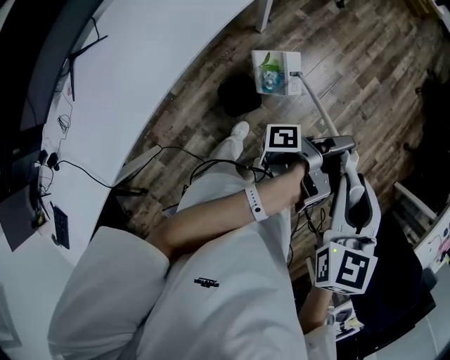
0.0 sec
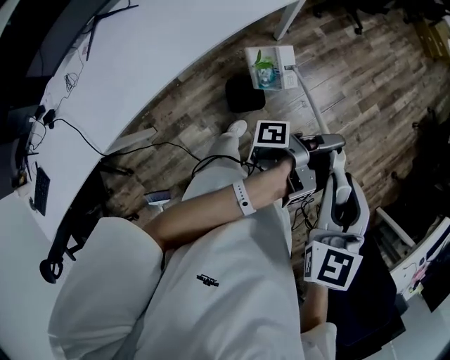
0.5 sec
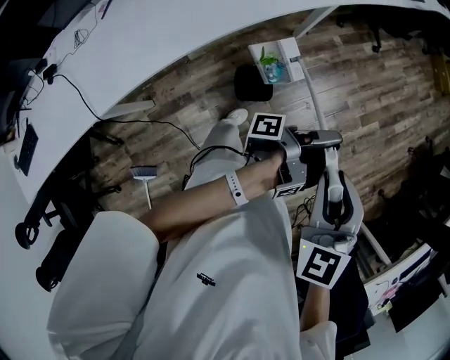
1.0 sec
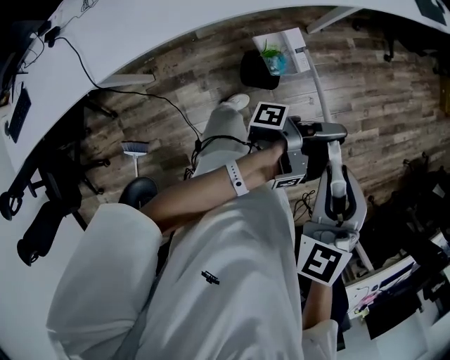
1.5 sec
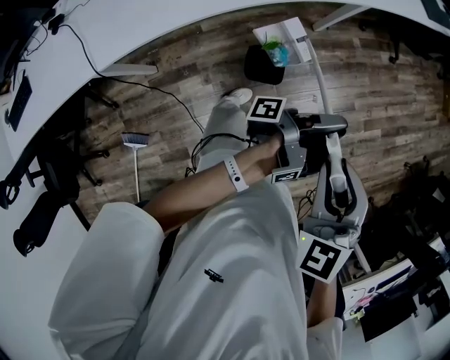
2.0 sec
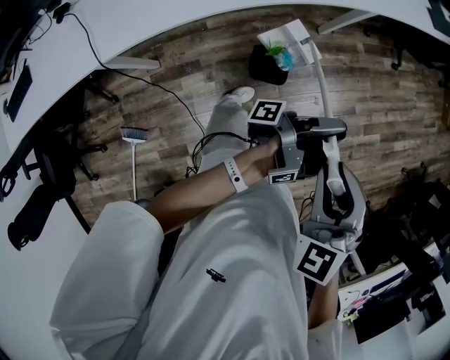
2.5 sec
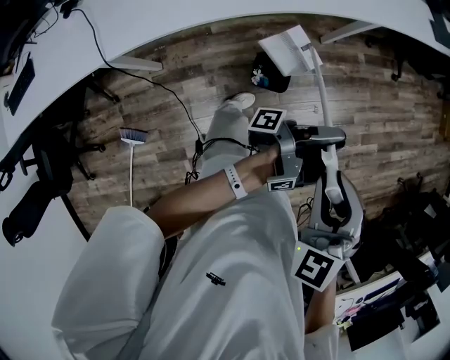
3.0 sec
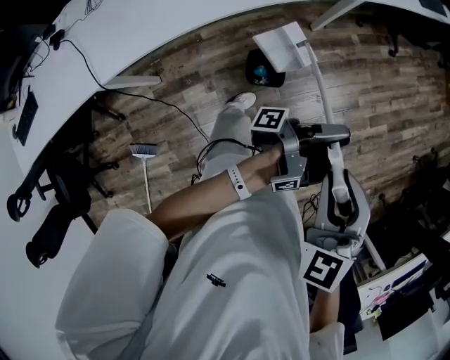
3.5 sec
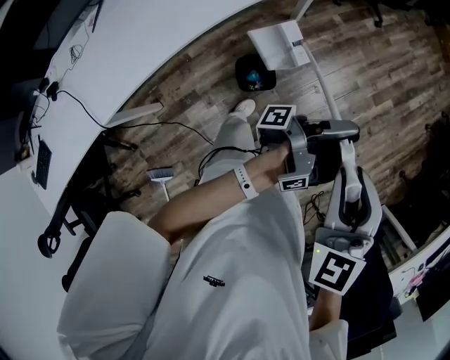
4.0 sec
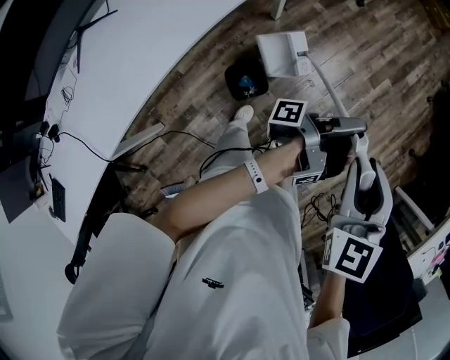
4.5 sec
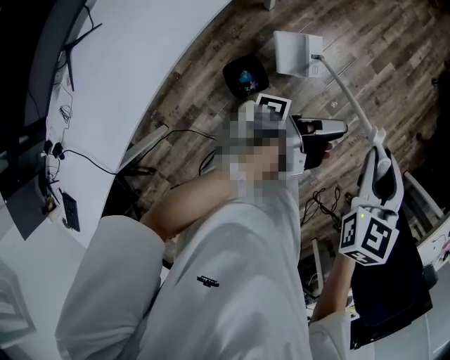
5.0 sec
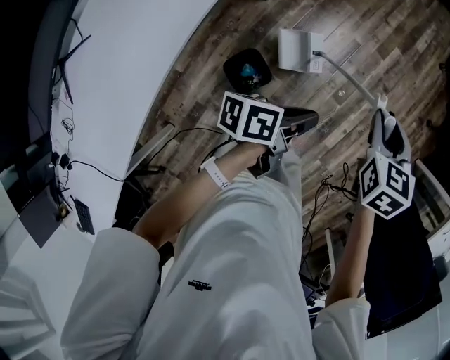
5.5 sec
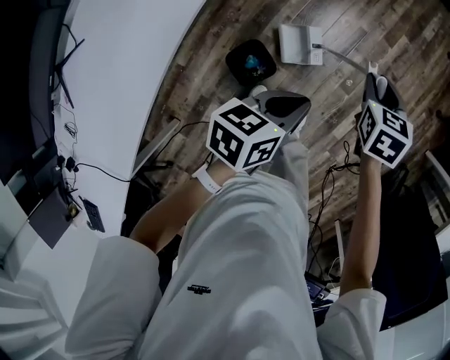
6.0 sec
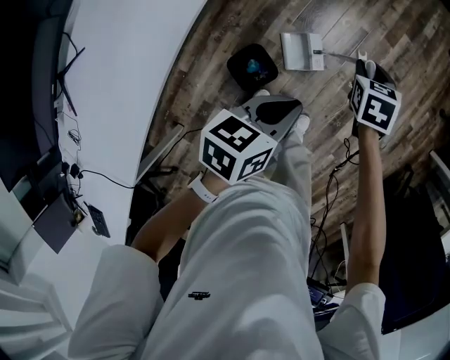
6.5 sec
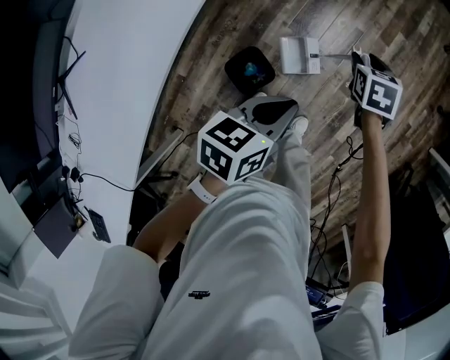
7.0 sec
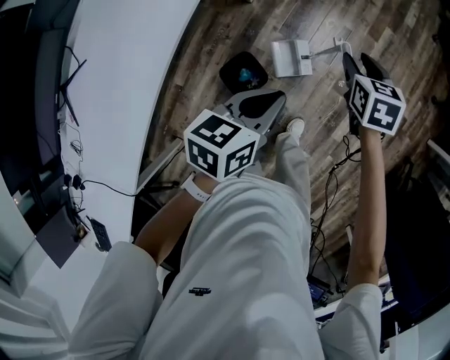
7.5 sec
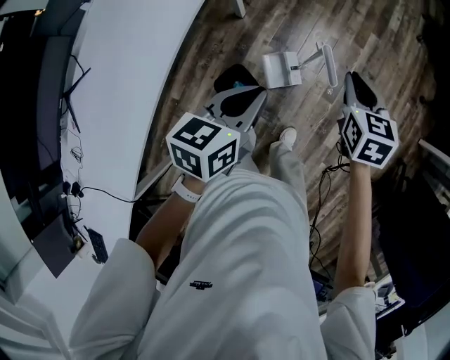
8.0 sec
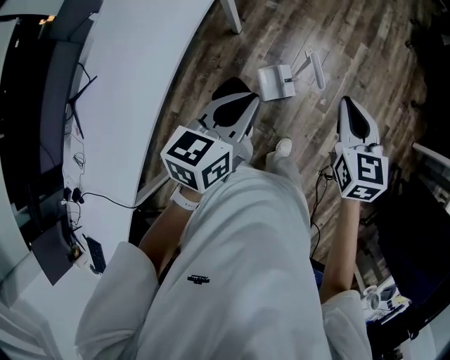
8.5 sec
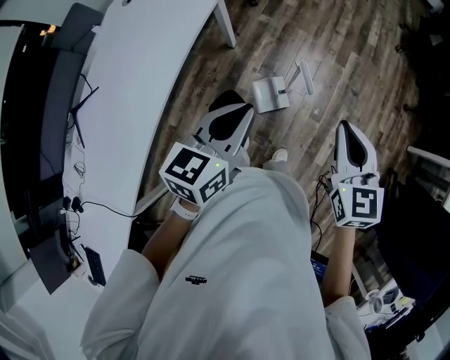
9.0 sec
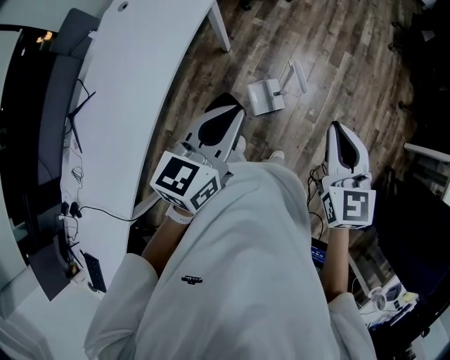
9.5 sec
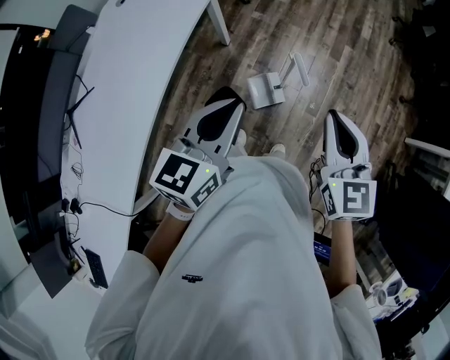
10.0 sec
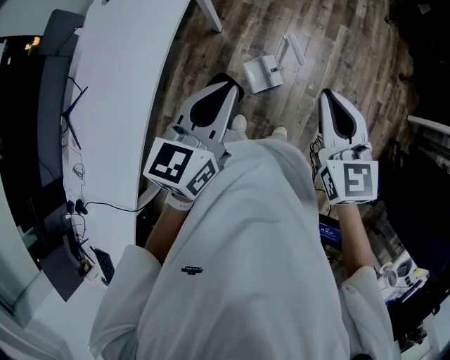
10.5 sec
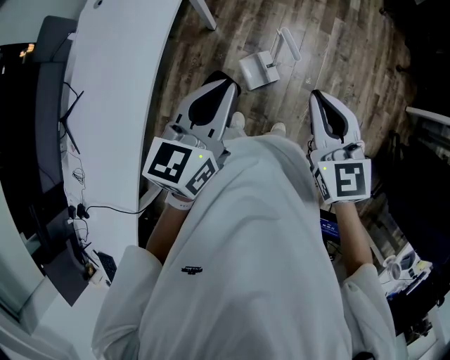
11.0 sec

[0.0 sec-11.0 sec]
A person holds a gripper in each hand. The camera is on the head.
0.0 sec to 2.0 sec: The right gripper moves approximately 10 cm, and rolls counterclockwise, seen from behind, by about 40 degrees.
3.5 sec to 5.5 sec: The right gripper shifts by some 30 cm, and changes its angle by about 60 degrees.
5.5 sec to 7.5 sec: The right gripper shifts some 10 cm downward.
7.5 sec to 9.0 sec: The right gripper heads upward, covering about 25 cm, turns by about 30 degrees, and closes its fingers.
9.0 sec to 11.0 sec: The right gripper ends up some 5 cm from where it was.

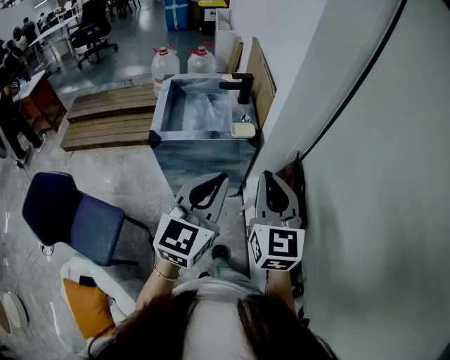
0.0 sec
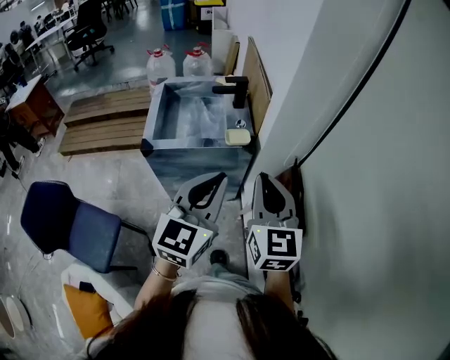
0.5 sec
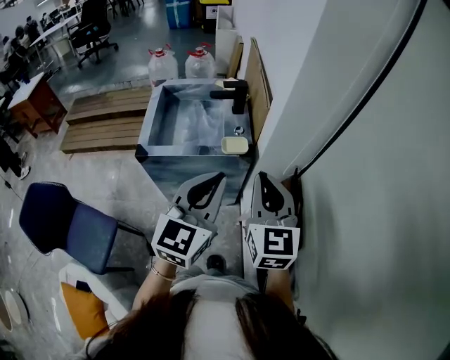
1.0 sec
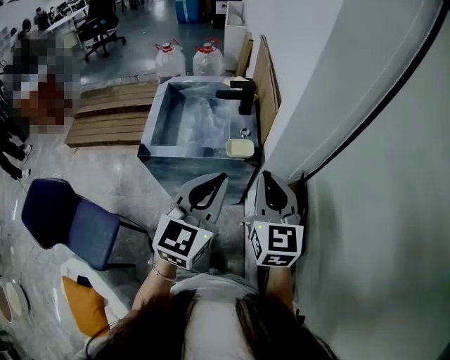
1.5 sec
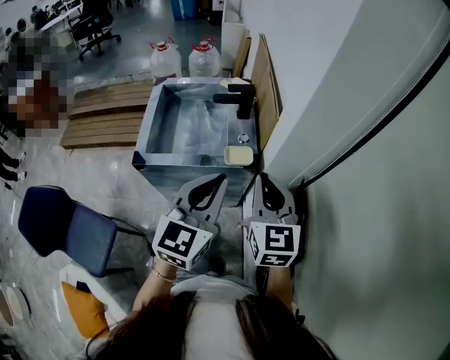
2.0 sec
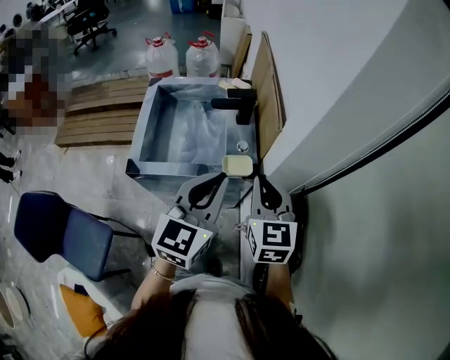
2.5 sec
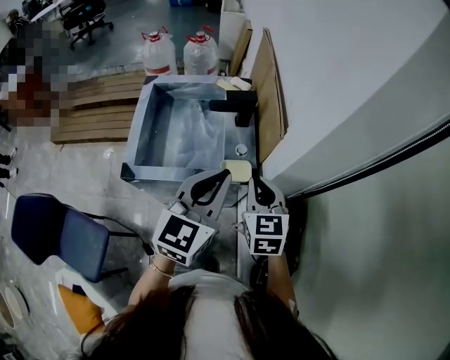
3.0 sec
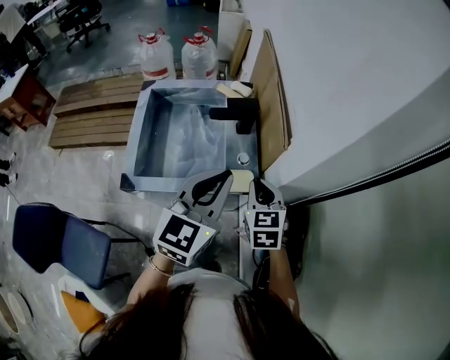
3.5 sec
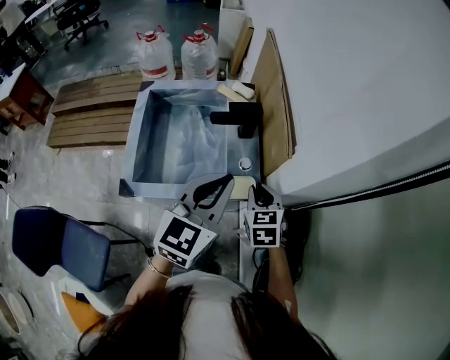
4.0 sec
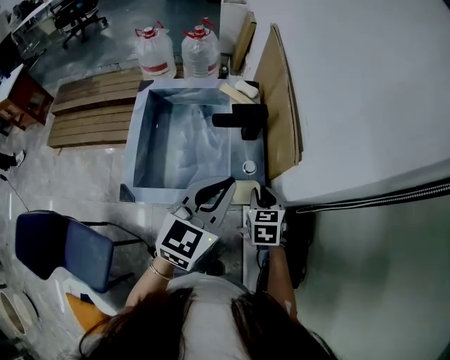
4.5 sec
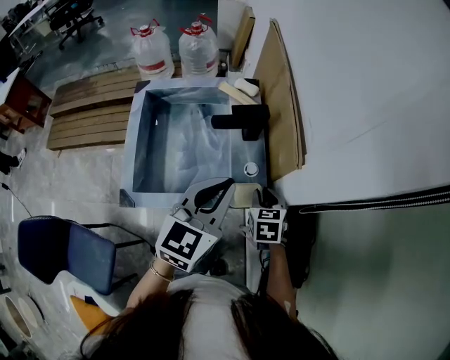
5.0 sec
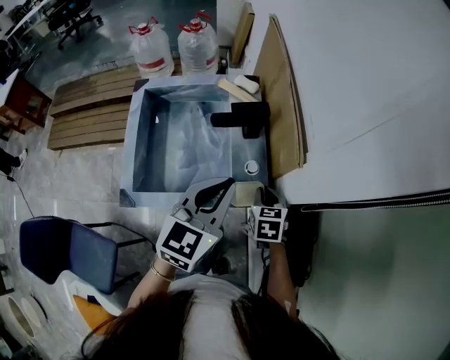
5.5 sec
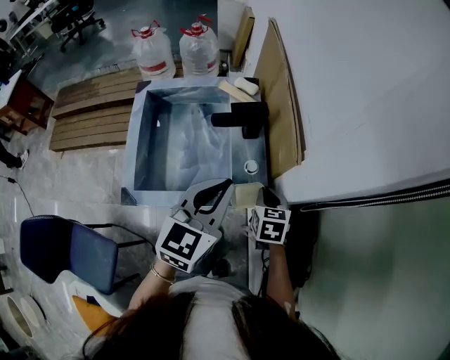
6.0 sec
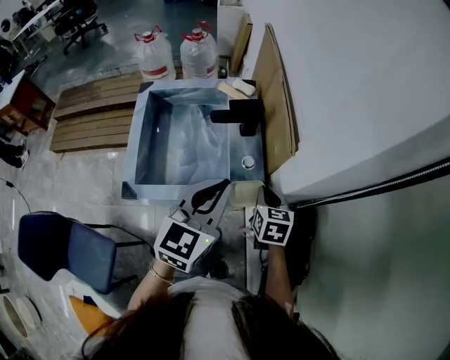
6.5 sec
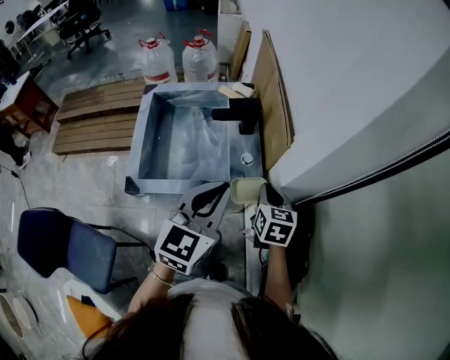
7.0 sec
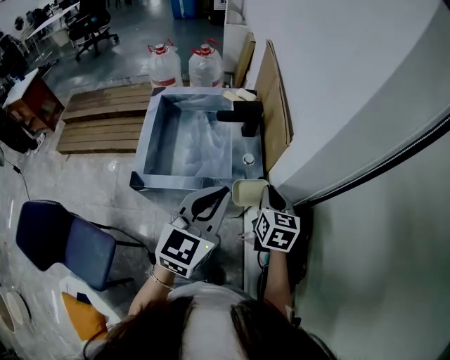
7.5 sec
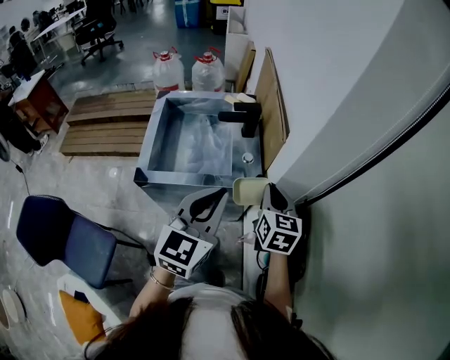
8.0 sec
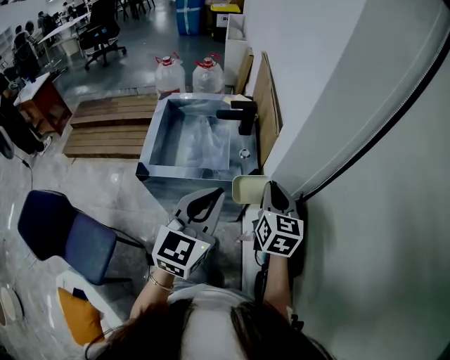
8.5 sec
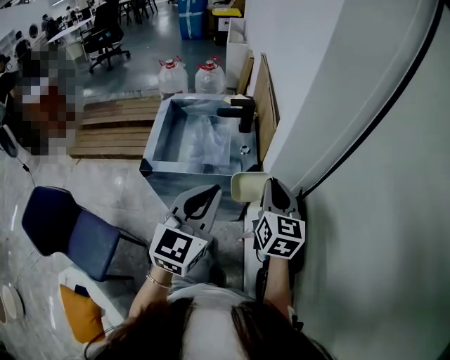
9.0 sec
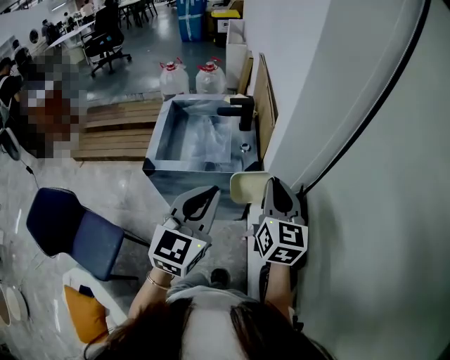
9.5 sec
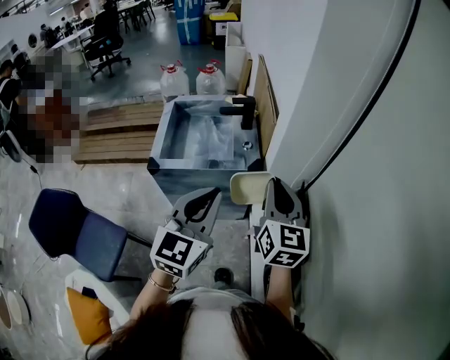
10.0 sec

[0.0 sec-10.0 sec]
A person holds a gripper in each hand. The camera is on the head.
0.0 sec to 2.0 sec: Both grippers travel together forward, about 20 cm.
2.0 sec to 4.0 sec: The left gripper heads forward, covering approximately 15 cm. The right gripper is displaced downward and forward by some 25 cm, and tips its fingers downward by some 30 degrees.
4.0 sec to 6.0 sec: The right gripper is displaced downward by some 5 cm.
6.0 sec to 8.0 sec: The right gripper travels upward and backward by roughly 20 cm, and swivels some 20 degrees; the left gripper moves backward, roughly 15 cm.
8.0 sec to 10.0 sec: The right gripper is displaced backward and upward by about 20 cm; the left gripper moves backward, roughly 15 cm.

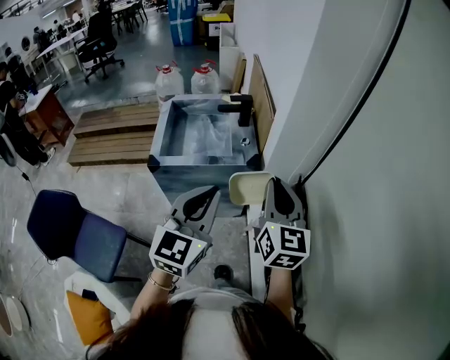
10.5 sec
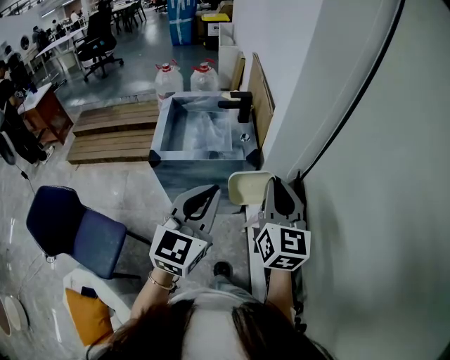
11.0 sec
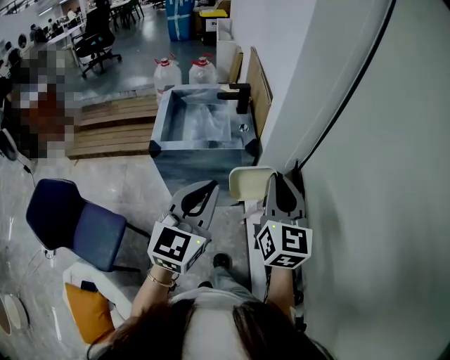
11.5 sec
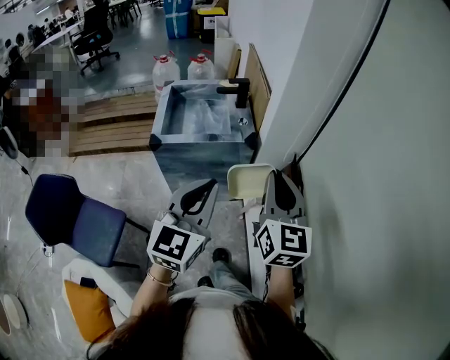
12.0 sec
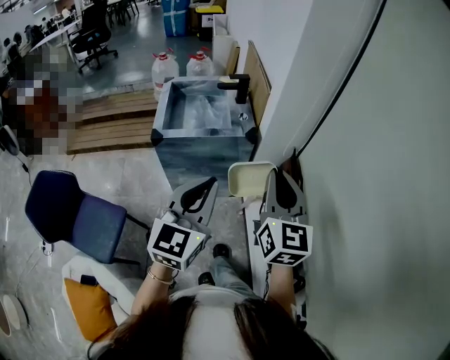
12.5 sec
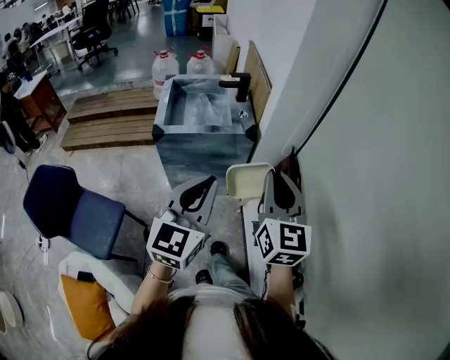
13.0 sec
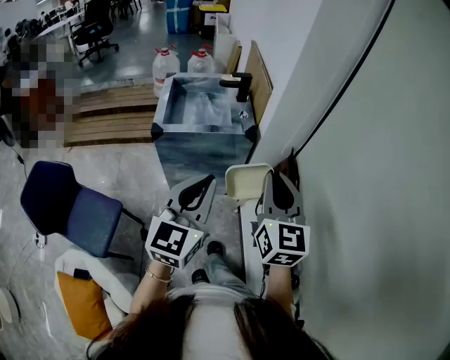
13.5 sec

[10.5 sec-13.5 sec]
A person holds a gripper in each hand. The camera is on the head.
10.5 sec to 12.0 sec: The grippers both shift backward by approximately 10 cm.
12.0 sec to 13.5 sec: The grippers make only small movements.

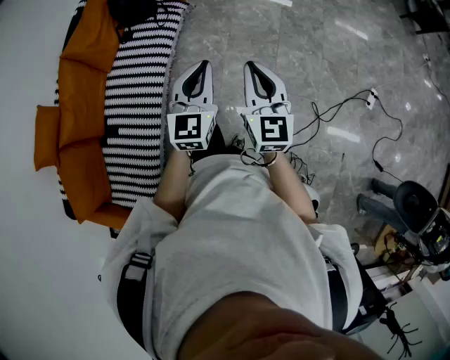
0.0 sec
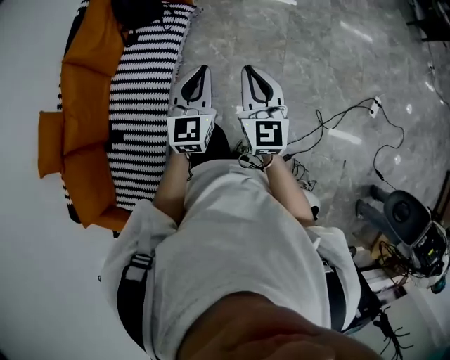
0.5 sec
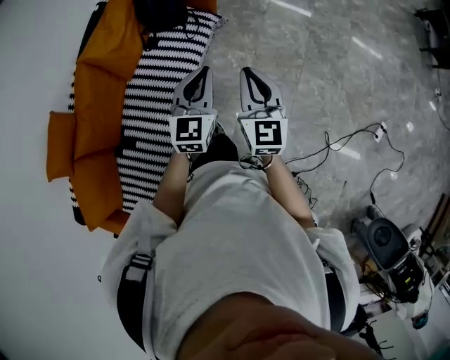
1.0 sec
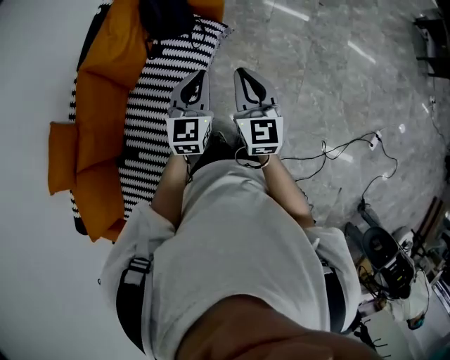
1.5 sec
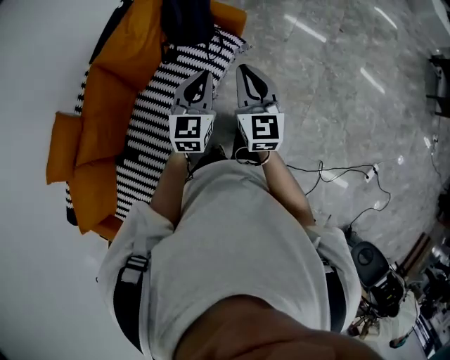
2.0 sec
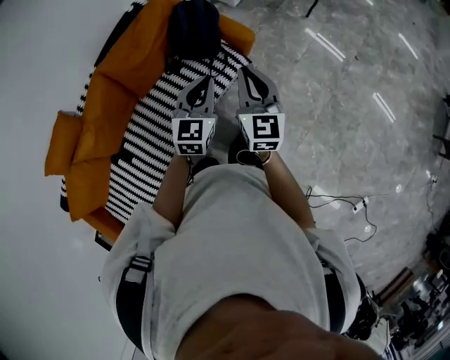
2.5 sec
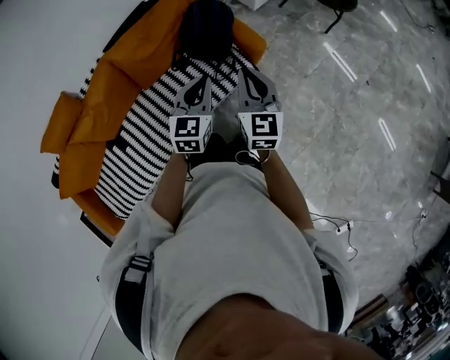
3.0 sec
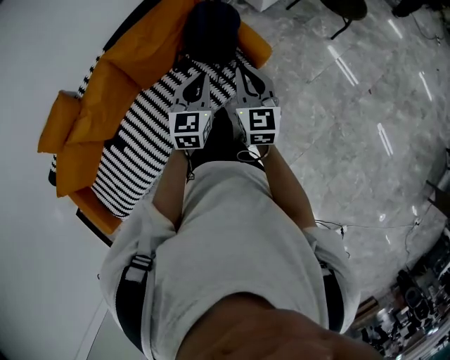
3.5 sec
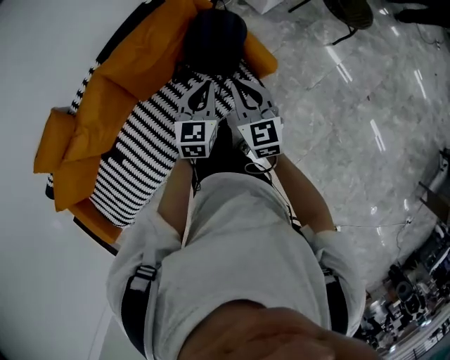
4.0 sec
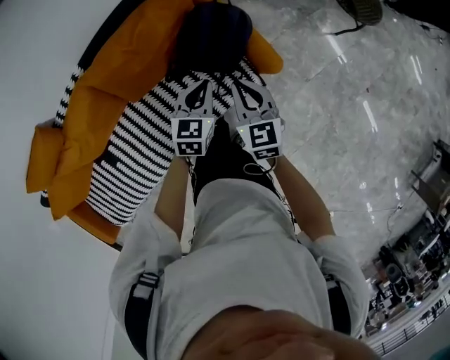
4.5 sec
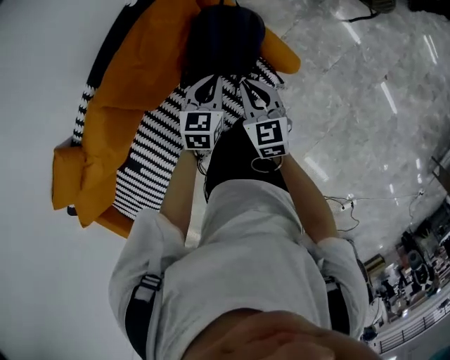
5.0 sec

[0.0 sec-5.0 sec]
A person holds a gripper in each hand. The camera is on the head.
0.0 sec to 2.5 sec: The two grippers travel together, forward and to the left, about 60 cm. The right gripper turns by about 30 degrees. Meanwhile the left gripper swivels some 20 degrees.
2.5 sec to 5.0 sec: Both grippers travel together forward and downward, about 40 cm. The right gripper changes its angle by about 30 degrees; the left gripper swivels some 30 degrees.
